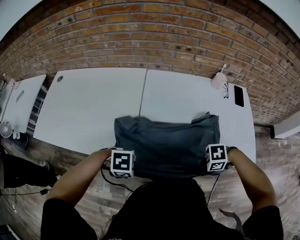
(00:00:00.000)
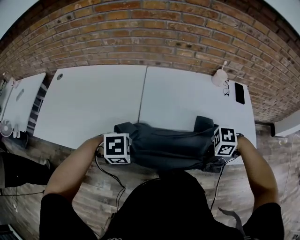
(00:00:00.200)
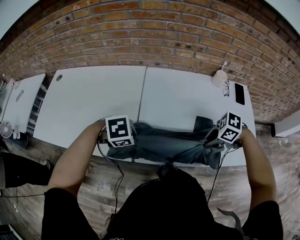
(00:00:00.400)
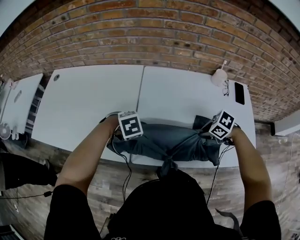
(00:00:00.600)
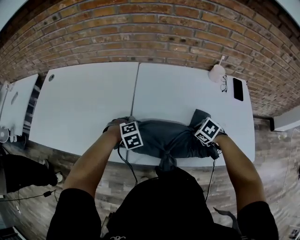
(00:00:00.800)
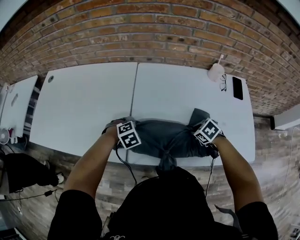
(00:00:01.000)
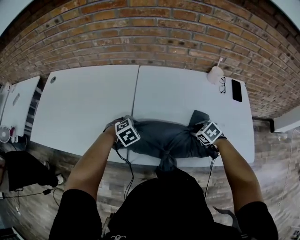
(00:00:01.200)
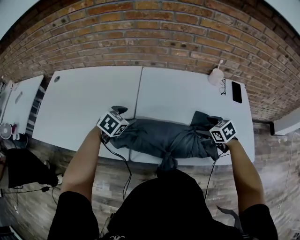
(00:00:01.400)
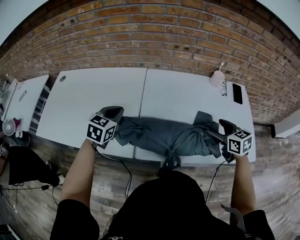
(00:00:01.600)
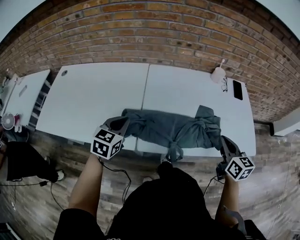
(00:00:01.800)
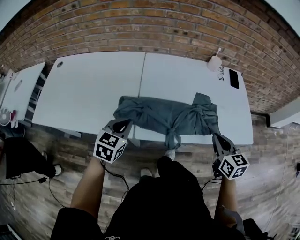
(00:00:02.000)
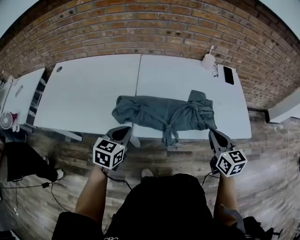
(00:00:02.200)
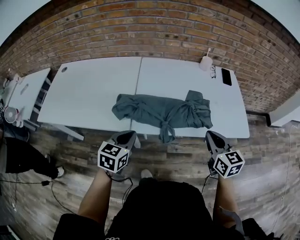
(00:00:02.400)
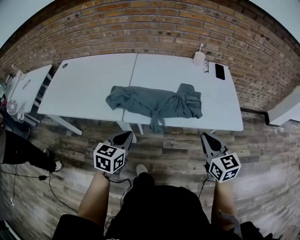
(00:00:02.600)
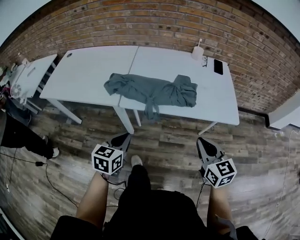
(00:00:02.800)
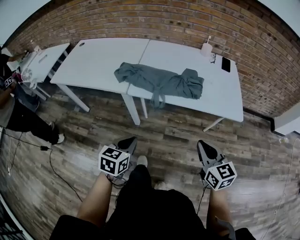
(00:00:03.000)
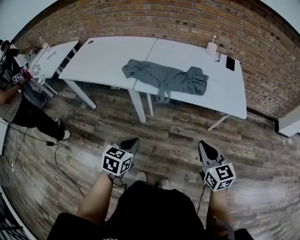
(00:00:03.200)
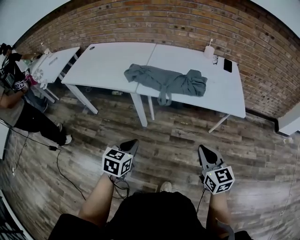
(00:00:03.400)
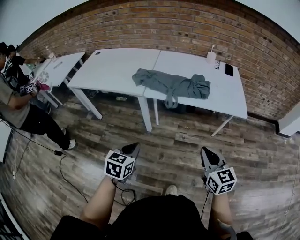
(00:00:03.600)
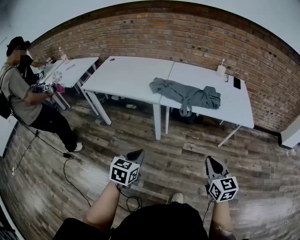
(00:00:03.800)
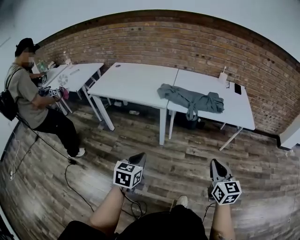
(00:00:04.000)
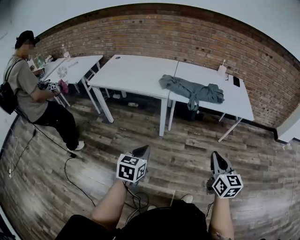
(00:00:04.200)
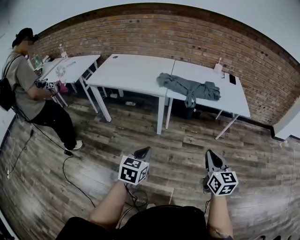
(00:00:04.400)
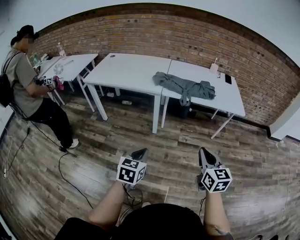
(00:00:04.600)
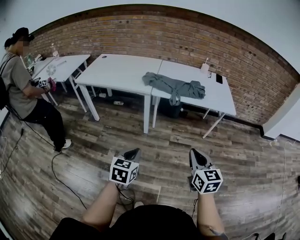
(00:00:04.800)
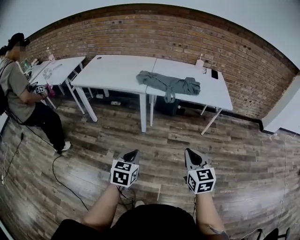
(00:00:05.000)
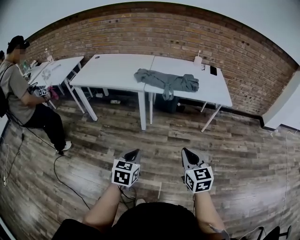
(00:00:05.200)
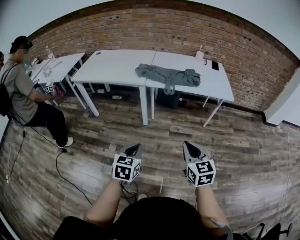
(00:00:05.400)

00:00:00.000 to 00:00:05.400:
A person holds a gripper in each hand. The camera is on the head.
00:00:00.000 to 00:00:01.400: The left gripper goes up and down, approximately 10 cm each way, reversing 2 times, swivels approximately 60 degrees, and opens up. The right gripper moves up and down over roughly 10 cm, changing direction 2 times, swivels about 70 degrees, and opens its fingers.
00:00:01.400 to 00:00:02.800: The two grippers go about 40 cm backward. The right gripper points its fingers about 40 degrees further upward, and closes, while the left gripper changes its angle by some 30 degrees, and closes.
00:00:02.800 to 00:00:04.000: Both grippers move backward and to the left, roughly 30 cm.
00:00:04.000 to 00:00:05.400: The left gripper moves to the right and backward, about 15 cm, while the right gripper moves backward, roughly 10 cm.

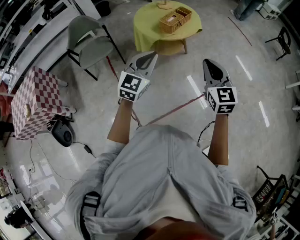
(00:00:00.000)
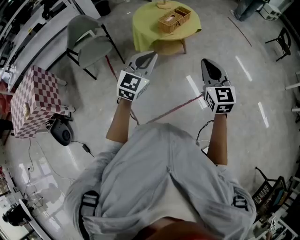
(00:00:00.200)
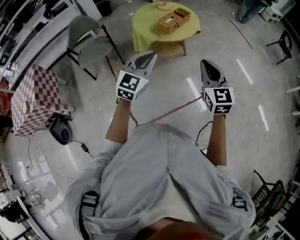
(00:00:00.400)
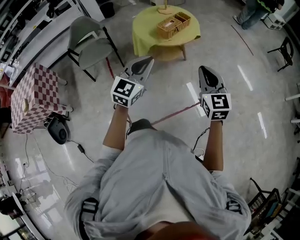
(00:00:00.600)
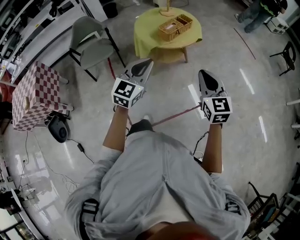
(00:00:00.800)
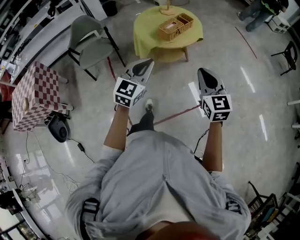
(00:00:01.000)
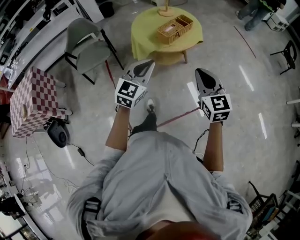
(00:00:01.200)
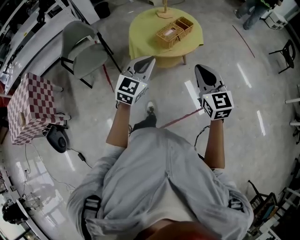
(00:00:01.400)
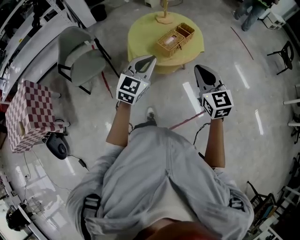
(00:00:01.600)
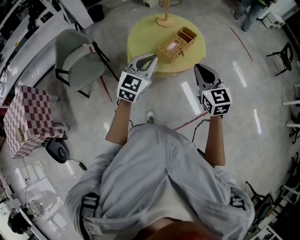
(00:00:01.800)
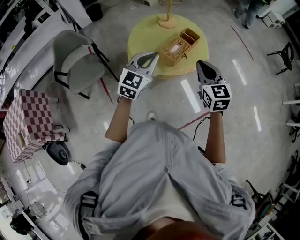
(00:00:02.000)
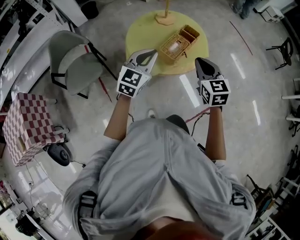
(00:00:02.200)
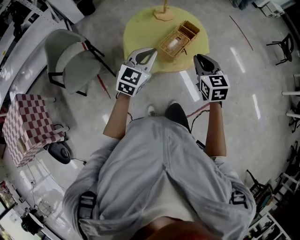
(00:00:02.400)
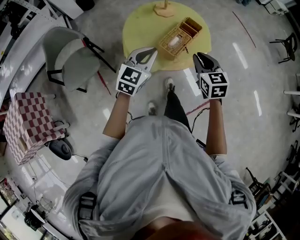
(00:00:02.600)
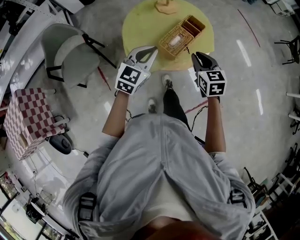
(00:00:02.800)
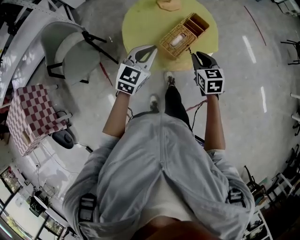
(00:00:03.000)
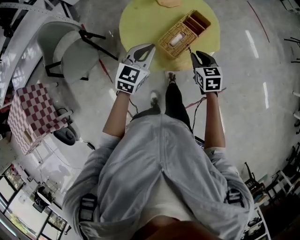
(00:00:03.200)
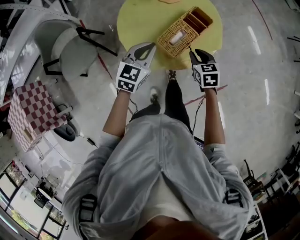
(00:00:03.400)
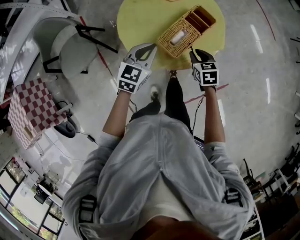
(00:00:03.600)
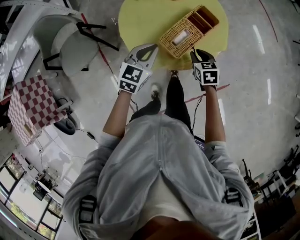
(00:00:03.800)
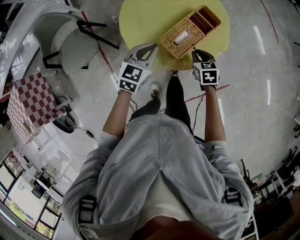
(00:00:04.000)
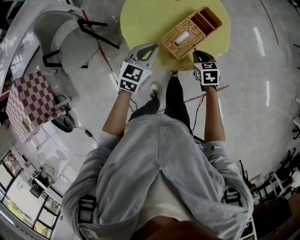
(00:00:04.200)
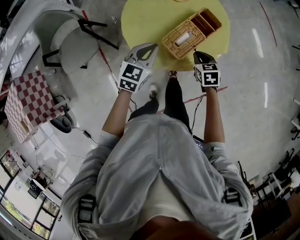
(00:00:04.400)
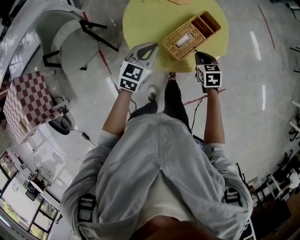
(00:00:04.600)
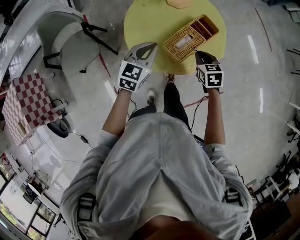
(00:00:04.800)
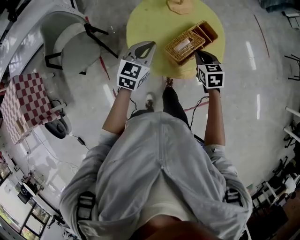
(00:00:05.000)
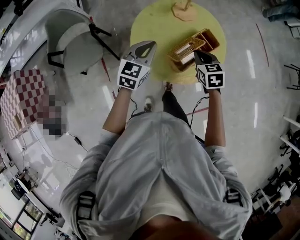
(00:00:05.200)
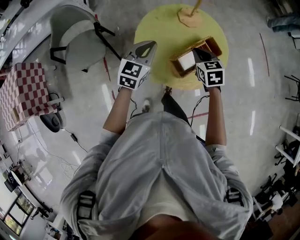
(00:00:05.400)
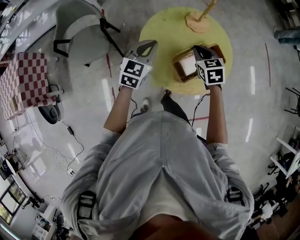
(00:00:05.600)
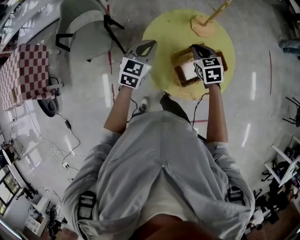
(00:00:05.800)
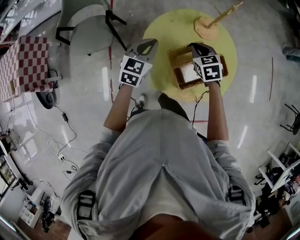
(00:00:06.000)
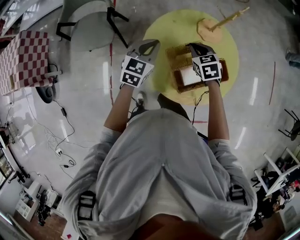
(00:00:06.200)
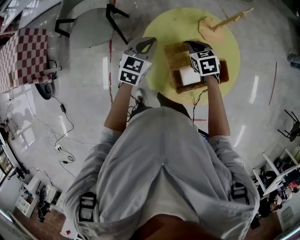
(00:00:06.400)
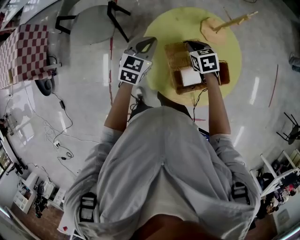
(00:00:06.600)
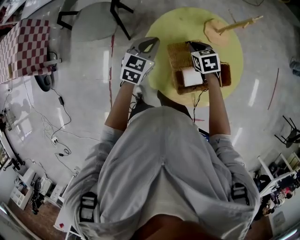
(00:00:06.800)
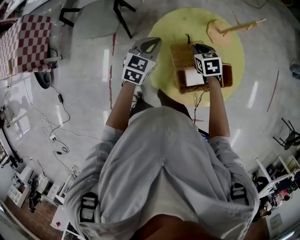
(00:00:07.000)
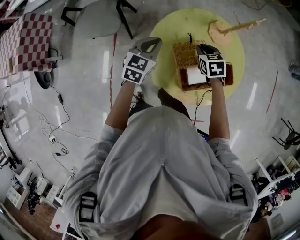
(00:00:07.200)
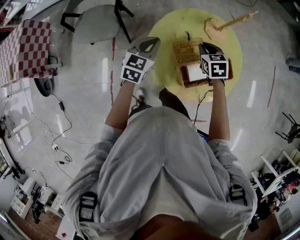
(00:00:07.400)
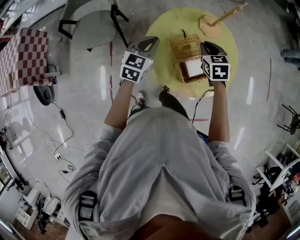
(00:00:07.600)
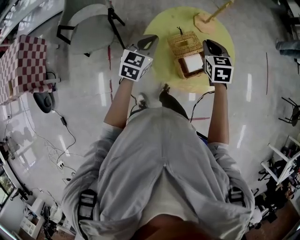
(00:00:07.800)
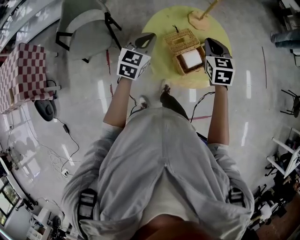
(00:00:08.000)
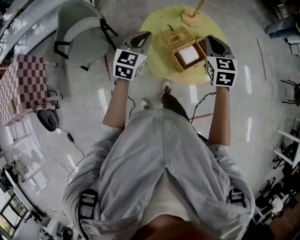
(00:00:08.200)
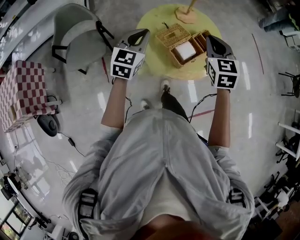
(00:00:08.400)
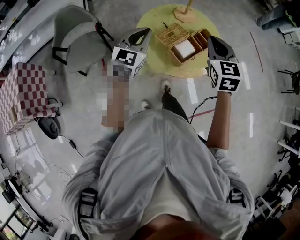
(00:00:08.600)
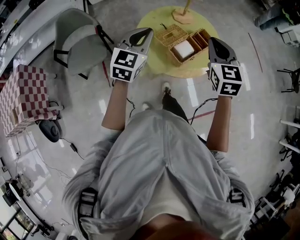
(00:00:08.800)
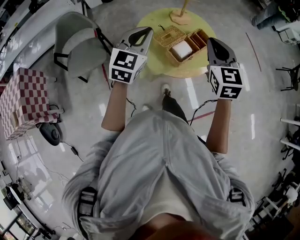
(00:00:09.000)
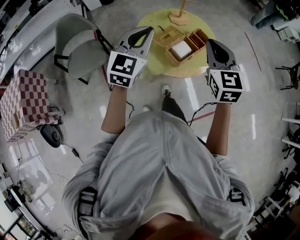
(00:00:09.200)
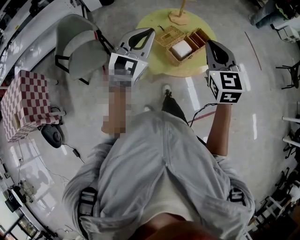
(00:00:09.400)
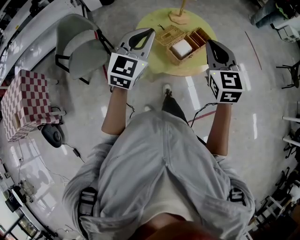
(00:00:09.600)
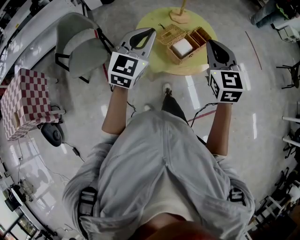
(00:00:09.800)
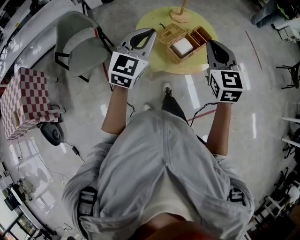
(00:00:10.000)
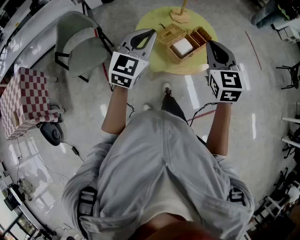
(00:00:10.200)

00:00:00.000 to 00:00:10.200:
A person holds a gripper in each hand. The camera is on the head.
00:00:00.000 to 00:00:01.400: Both grippers travel together forward, some 15 cm.
00:00:01.400 to 00:00:03.000: The right gripper heads forward and downward, covering some 40 cm, and turns by some 30 degrees, while the left gripper travels forward by some 30 cm.
00:00:03.000 to 00:00:04.400: The right gripper shifts about 15 cm downward, while the left gripper shifts roughly 10 cm downward.
00:00:04.400 to 00:00:05.800: The right gripper goes roughly 25 cm forward, upward and to the left, and swivels approximately 30 degrees; the left gripper shifts approximately 15 cm to the left, forward and upward, and turns by roughly 20 degrees.
00:00:05.800 to 00:00:07.200: Both grippers move downward, approximately 5 cm.
00:00:07.200 to 00:00:08.800: The right gripper is displaced upward by roughly 30 cm, and tilts its fingers some 30 degrees upward. The left gripper moves upward, approximately 20 cm, and swivels approximately 30 degrees.
00:00:08.800 to 00:00:10.200: The right gripper goes about 5 cm backward. Meanwhile the left gripper moves about 5 cm.

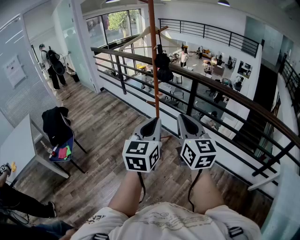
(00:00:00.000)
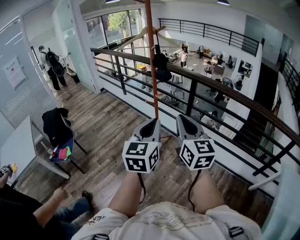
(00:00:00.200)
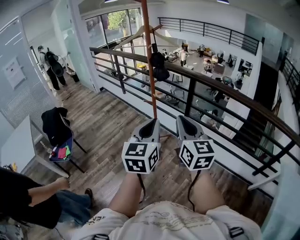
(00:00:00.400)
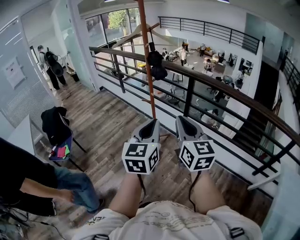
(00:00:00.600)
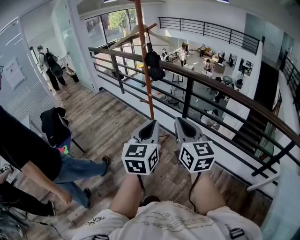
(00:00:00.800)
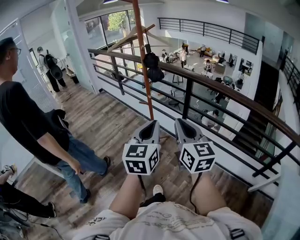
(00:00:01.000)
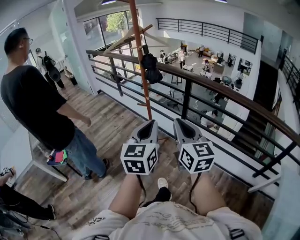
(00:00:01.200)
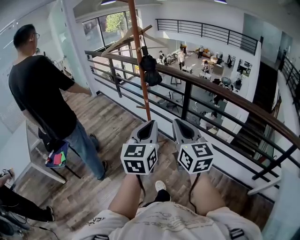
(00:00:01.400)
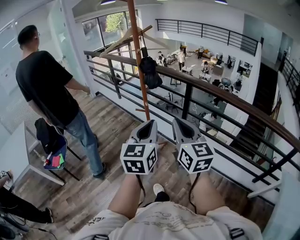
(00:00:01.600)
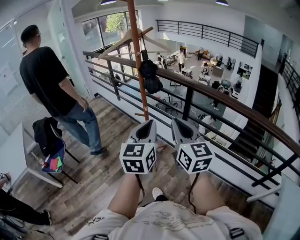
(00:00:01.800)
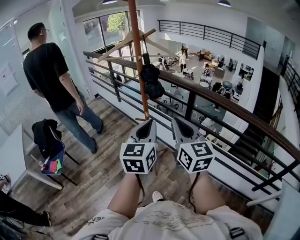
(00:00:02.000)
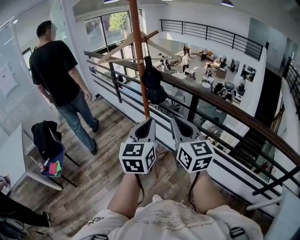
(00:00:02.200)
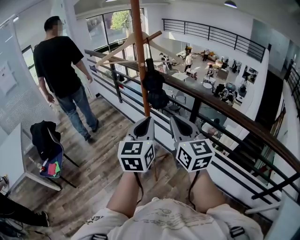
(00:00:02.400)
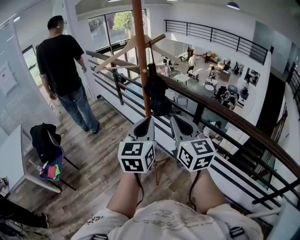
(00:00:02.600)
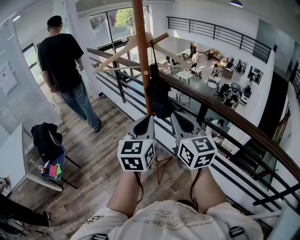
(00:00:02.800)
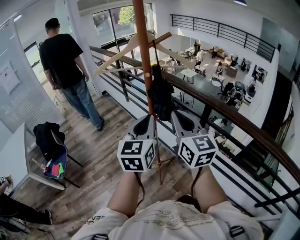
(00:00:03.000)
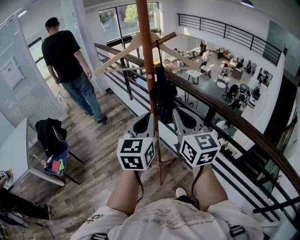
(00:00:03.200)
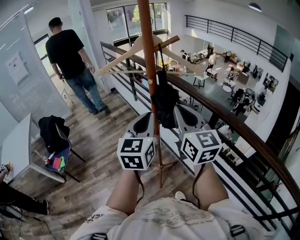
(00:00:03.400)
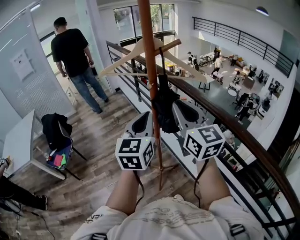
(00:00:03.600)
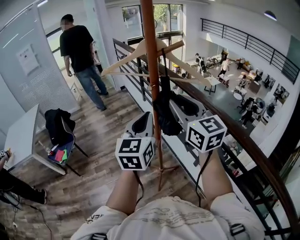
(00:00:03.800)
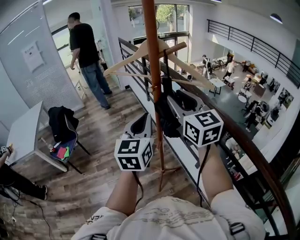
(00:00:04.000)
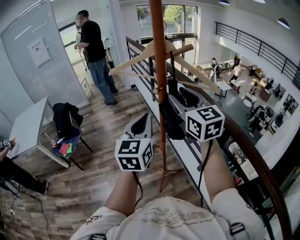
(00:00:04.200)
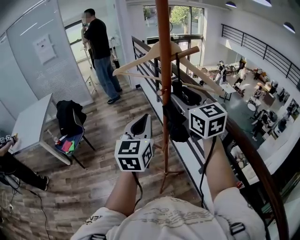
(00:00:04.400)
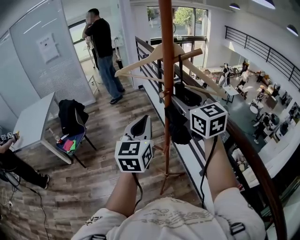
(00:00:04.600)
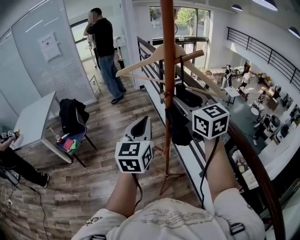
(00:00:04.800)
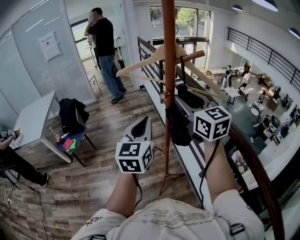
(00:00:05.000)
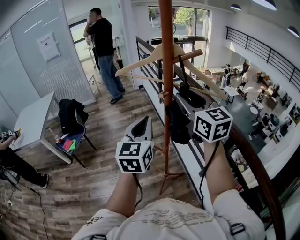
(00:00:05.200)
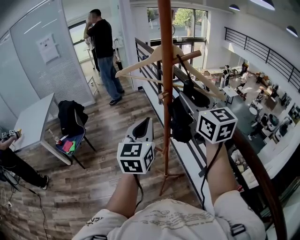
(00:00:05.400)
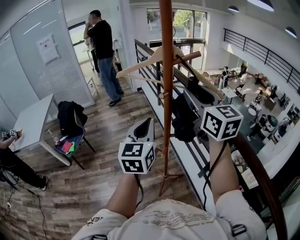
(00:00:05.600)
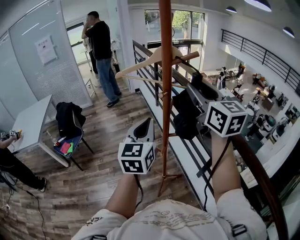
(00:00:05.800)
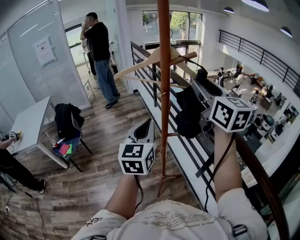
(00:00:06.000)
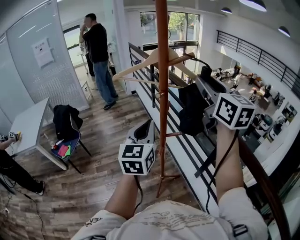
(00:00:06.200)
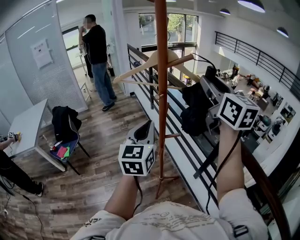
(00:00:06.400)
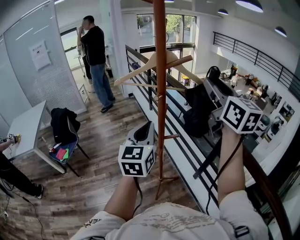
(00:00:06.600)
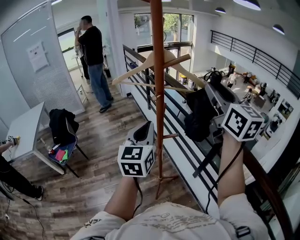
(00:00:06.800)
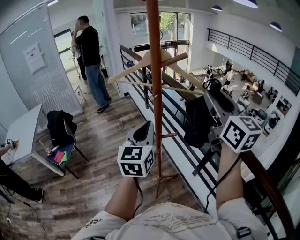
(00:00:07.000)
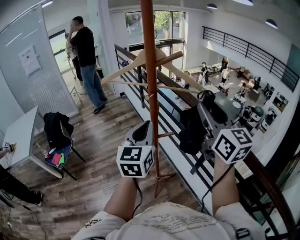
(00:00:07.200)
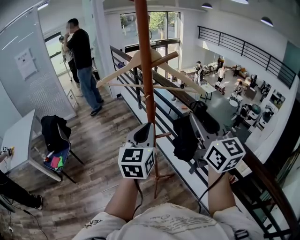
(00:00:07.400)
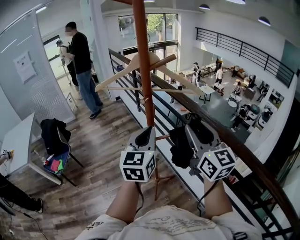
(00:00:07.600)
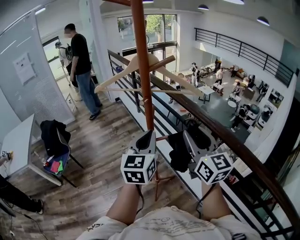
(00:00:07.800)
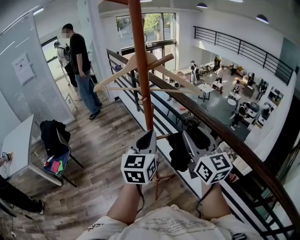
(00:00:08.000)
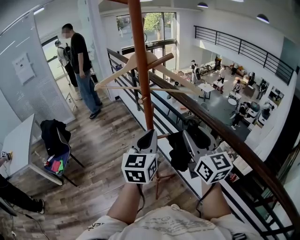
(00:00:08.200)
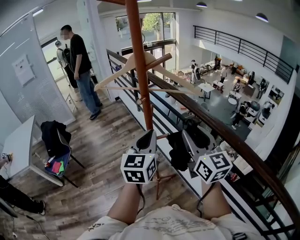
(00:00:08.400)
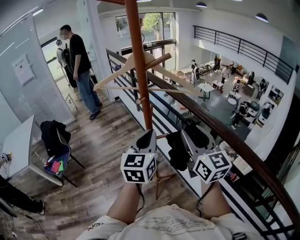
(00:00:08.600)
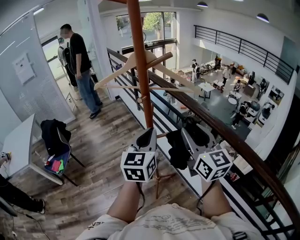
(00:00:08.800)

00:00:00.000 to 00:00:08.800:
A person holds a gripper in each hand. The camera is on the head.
00:00:00.000 to 00:00:01.400: Both grippers move to the right and forward, approximately 10 cm.
00:00:01.400 to 00:00:03.000: Both grippers move forward, some 35 cm.
00:00:03.000 to 00:00:04.400: The right gripper goes approximately 20 cm forward and upward, changes its angle by some 30 degrees, and opens up. Meanwhile the left gripper shifts about 5 cm forward, and turns by approximately 20 degrees.
00:00:04.400 to 00:00:05.800: The right gripper travels upward by approximately 5 cm.
00:00:05.800 to 00:00:07.400: The right gripper moves backward, downward and to the right, roughly 10 cm.
00:00:07.400 to 00:00:08.800: The right gripper moves downward, approximately 5 cm.
